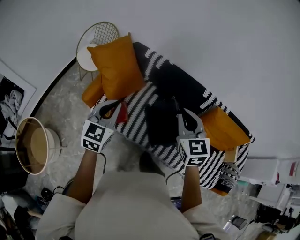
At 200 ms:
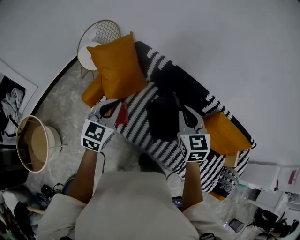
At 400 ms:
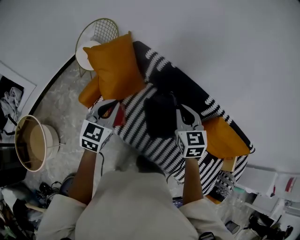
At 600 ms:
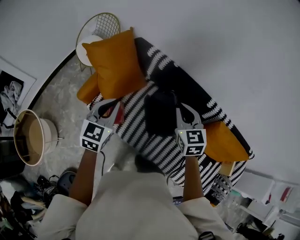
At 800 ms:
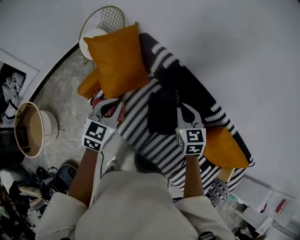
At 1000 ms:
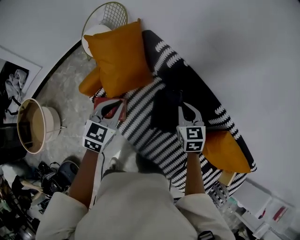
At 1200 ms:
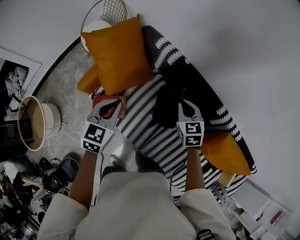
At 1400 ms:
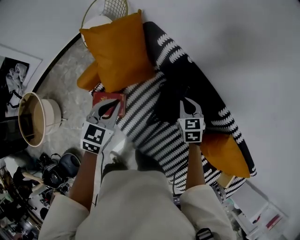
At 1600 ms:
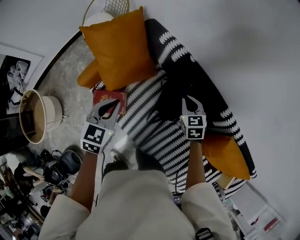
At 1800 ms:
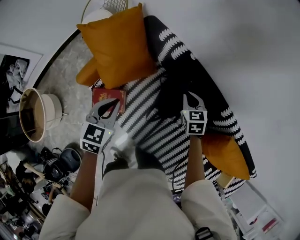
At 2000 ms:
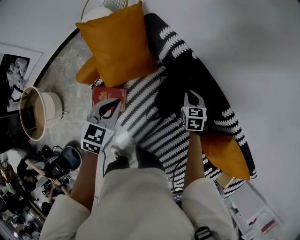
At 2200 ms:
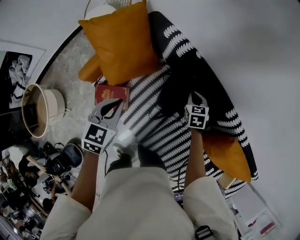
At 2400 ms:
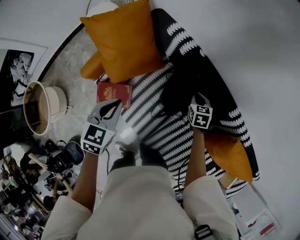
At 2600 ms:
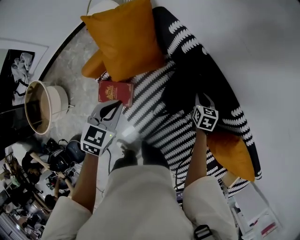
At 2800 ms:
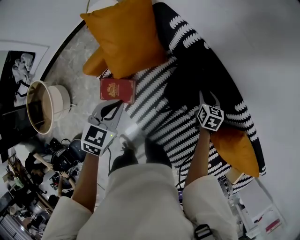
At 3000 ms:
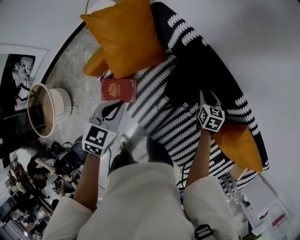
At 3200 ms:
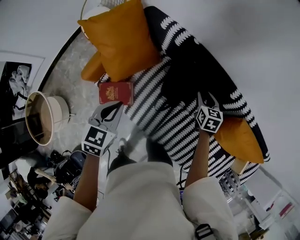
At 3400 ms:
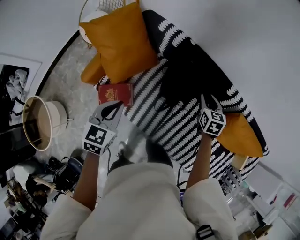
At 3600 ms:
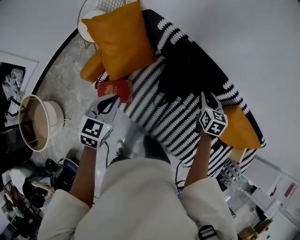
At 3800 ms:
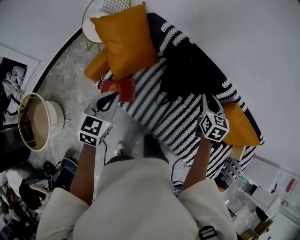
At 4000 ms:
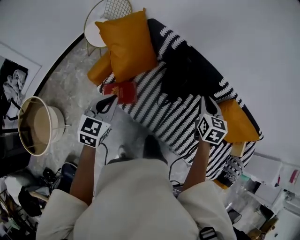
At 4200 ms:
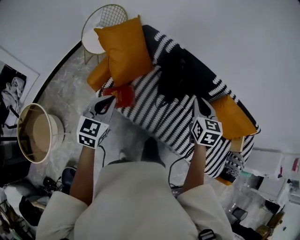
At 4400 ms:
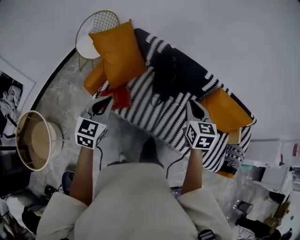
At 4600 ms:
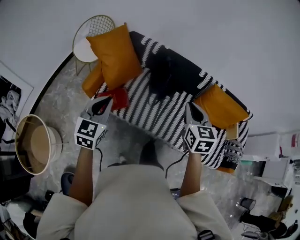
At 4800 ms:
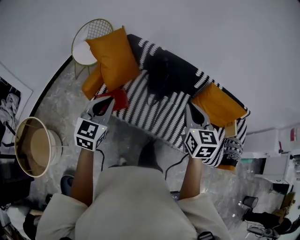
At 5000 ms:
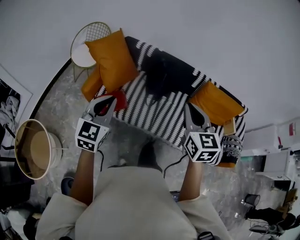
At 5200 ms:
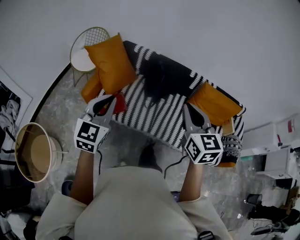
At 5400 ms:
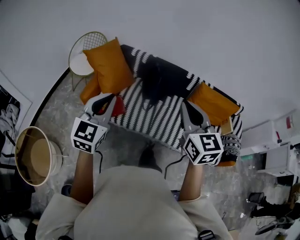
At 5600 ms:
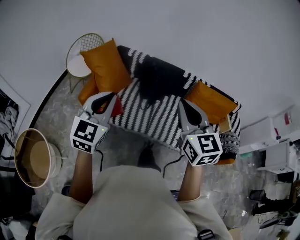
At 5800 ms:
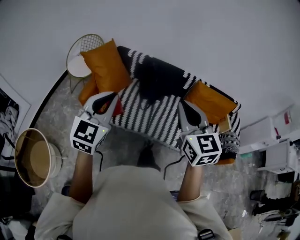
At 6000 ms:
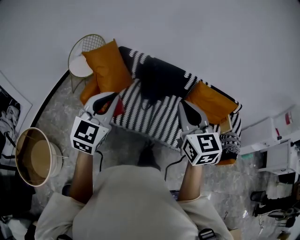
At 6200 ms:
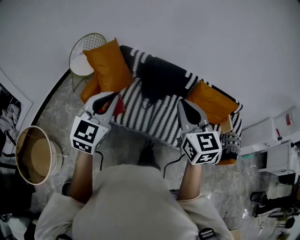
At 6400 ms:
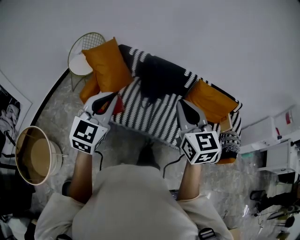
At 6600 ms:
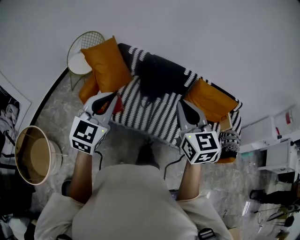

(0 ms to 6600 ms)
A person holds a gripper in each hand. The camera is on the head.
0 ms - 1600 ms: The right gripper is displaced forward and downward by approximately 40 cm, and rotates some 30 degrees, while the left gripper goes some 25 cm forward and downward, and swivels roughly 20 degrees.
1600 ms - 3200 ms: The left gripper moves backward, approximately 5 cm; the right gripper shifts about 10 cm to the right and backward, swivels approximately 20 degrees, and opens.
3200 ms - 5000 ms: The left gripper heads backward and upward, covering approximately 40 cm, and swivels roughly 30 degrees; the right gripper is displaced backward and upward by approximately 60 cm, rotates about 30 degrees, and closes.
5000 ms - 6600 ms: The right gripper goes some 10 cm backward and upward; the left gripper heads upward and backward, covering approximately 10 cm.

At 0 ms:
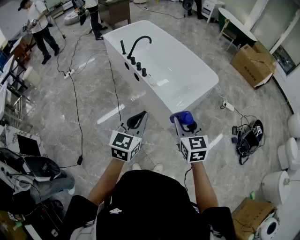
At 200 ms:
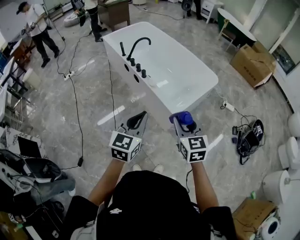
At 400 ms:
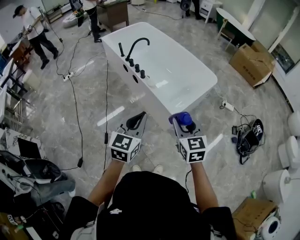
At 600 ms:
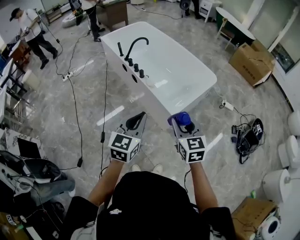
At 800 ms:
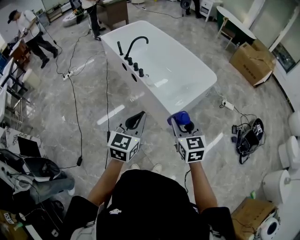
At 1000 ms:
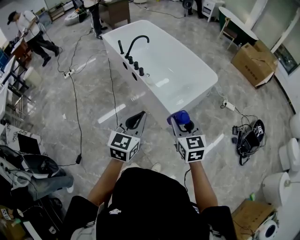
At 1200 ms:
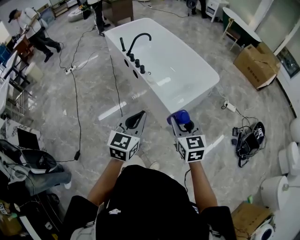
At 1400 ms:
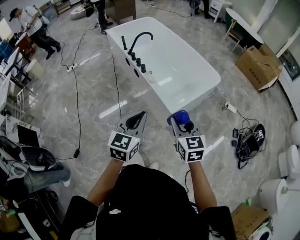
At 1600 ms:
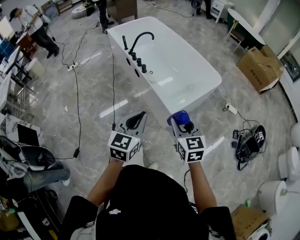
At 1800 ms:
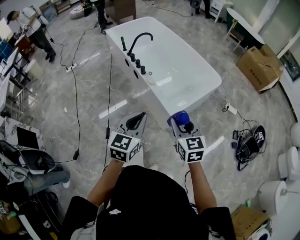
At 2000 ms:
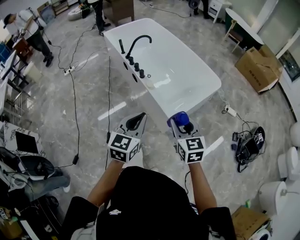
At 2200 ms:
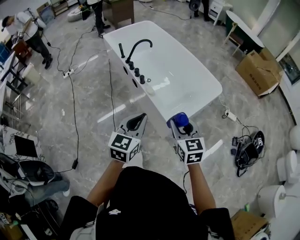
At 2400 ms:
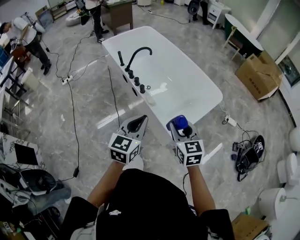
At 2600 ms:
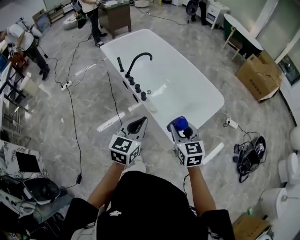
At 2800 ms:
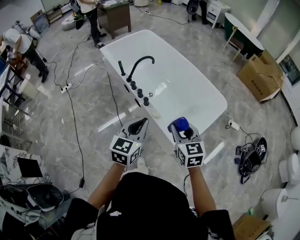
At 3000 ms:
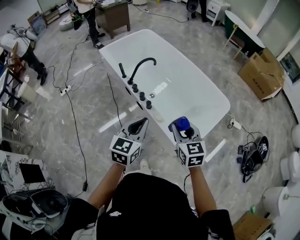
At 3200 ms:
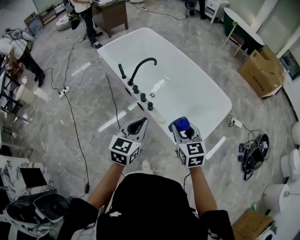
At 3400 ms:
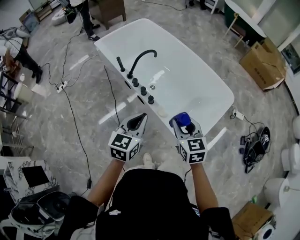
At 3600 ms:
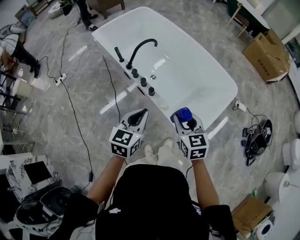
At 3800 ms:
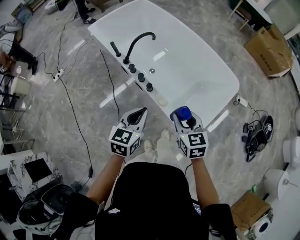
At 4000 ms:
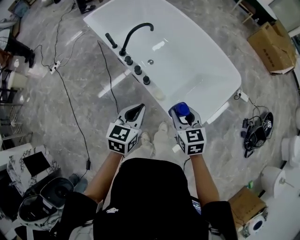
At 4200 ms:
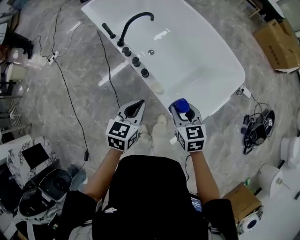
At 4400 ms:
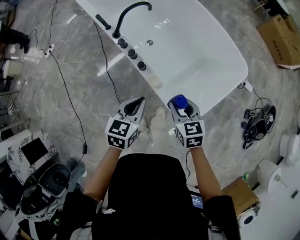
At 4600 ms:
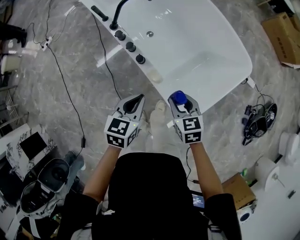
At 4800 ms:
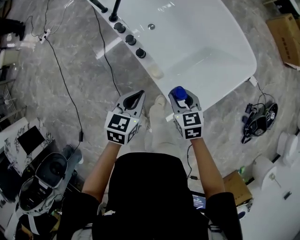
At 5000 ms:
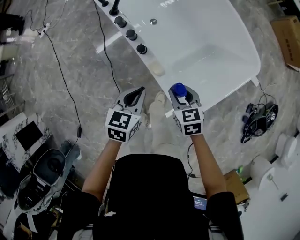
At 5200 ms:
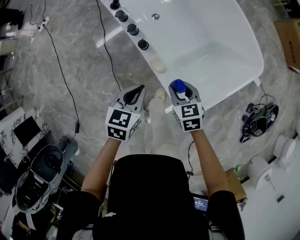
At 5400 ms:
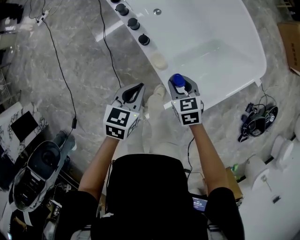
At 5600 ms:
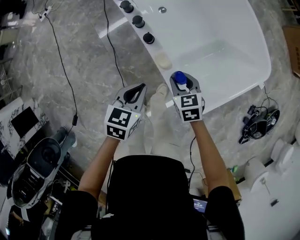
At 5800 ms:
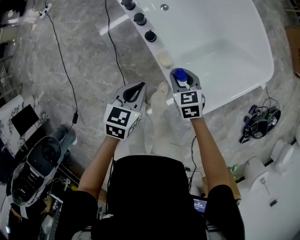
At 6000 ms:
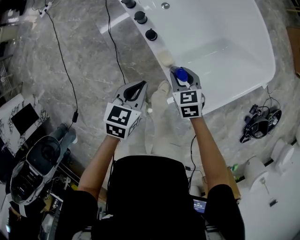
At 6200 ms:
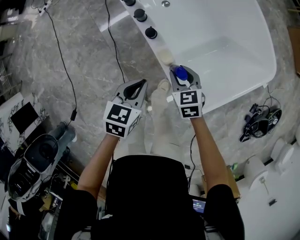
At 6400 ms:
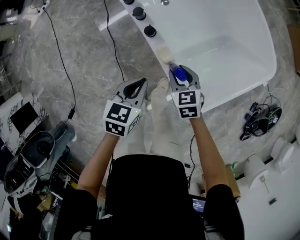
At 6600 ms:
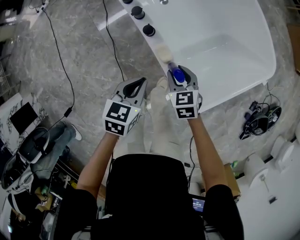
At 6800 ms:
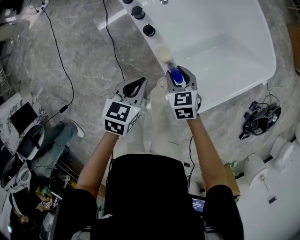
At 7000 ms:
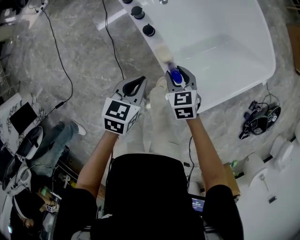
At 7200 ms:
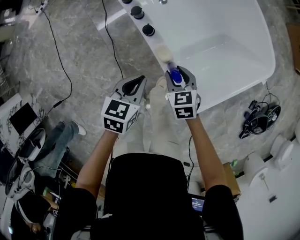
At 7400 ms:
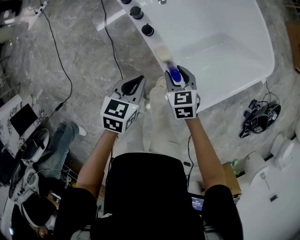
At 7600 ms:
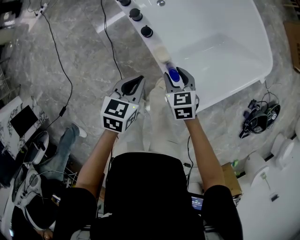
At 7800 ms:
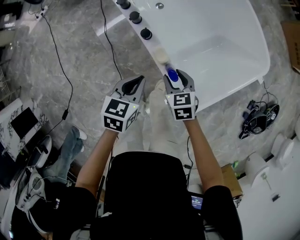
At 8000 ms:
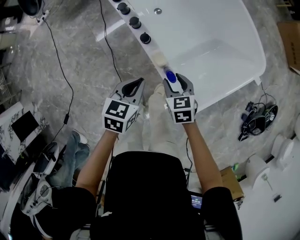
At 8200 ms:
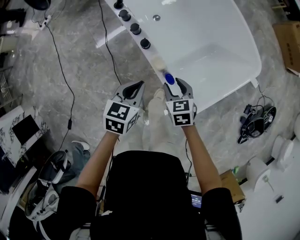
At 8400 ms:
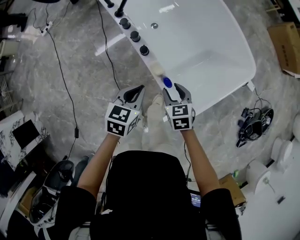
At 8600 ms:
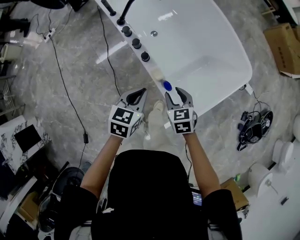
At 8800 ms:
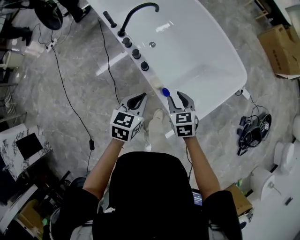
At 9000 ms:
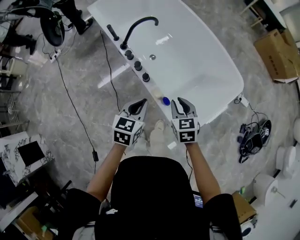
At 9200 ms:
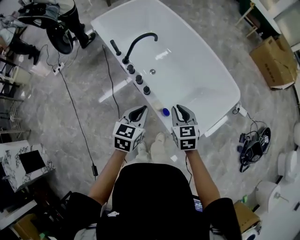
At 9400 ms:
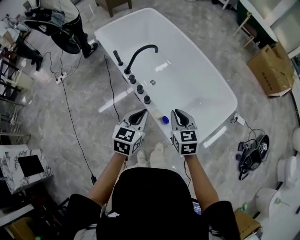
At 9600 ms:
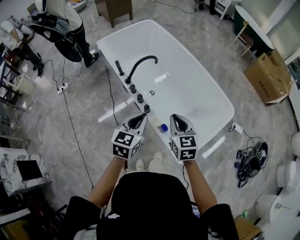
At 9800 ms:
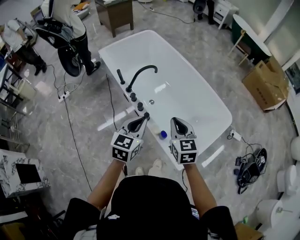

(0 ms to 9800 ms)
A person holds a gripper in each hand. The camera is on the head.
0 ms - 1400 ms: The left gripper goes roughly 5 cm to the right. The right gripper shifts by some 5 cm.
1400 ms - 2800 ms: The grippers both shift forward by roughly 30 cm.
2800 ms - 4200 ms: Both grippers travel together downward and forward, roughly 25 cm.
4200 ms - 5600 ms: The two grippers go approximately 20 cm downward. The right gripper changes its angle by roughly 20 degrees.
5600 ms - 7000 ms: The grippers stay close to where they were, moving slightly.
7000 ms - 8400 ms: Both grippers travel together upward, roughly 10 cm.
8400 ms - 9800 ms: The grippers both shift upward by some 30 cm. The right gripper rotates about 30 degrees, and closes, while the left gripper changes its angle by roughly 20 degrees.

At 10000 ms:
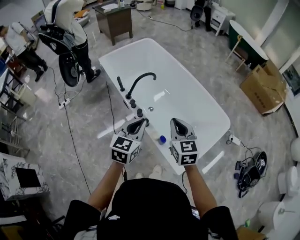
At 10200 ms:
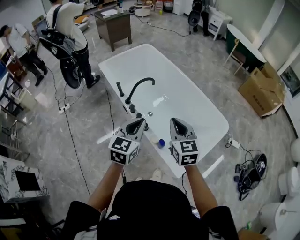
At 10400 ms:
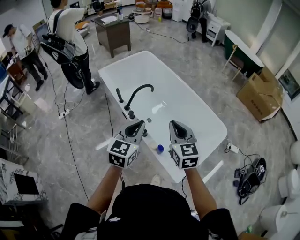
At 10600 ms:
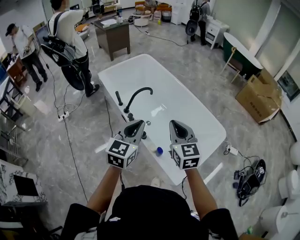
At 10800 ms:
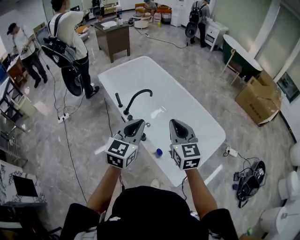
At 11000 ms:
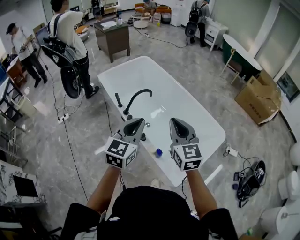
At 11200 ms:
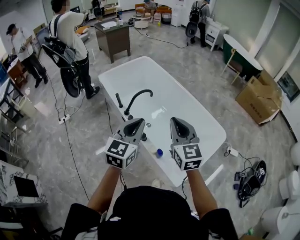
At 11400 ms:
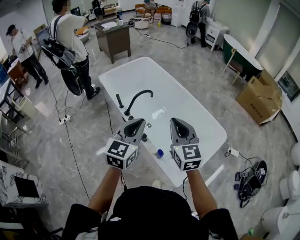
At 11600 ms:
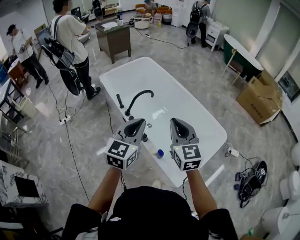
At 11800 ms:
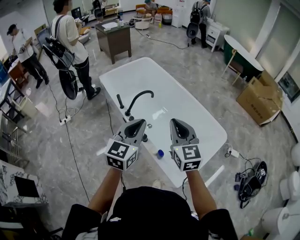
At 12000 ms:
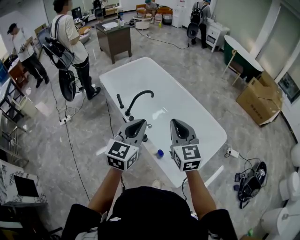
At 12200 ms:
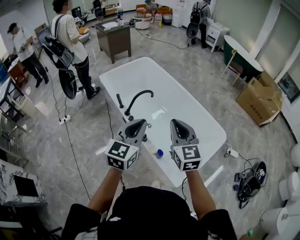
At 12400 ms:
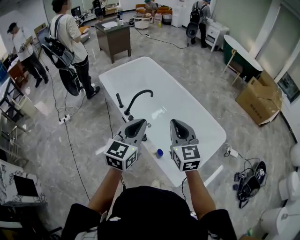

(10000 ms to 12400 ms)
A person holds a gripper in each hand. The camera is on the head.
10000 ms - 11200 ms: The grippers both shift upward by roughly 10 cm.
11200 ms - 12400 ms: Both grippers stay put.

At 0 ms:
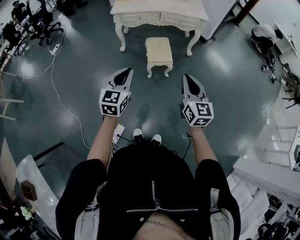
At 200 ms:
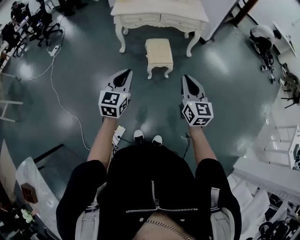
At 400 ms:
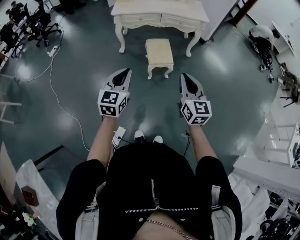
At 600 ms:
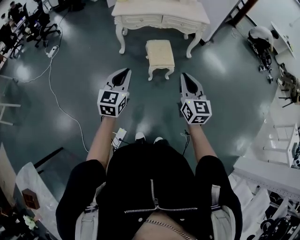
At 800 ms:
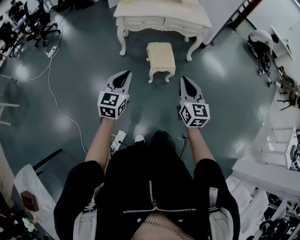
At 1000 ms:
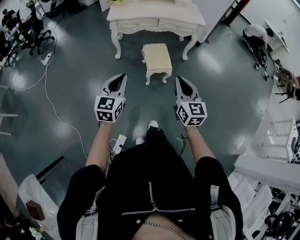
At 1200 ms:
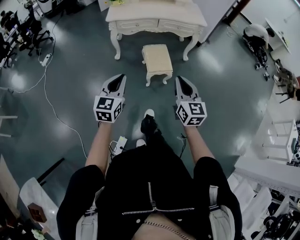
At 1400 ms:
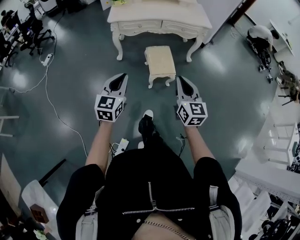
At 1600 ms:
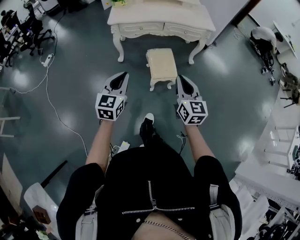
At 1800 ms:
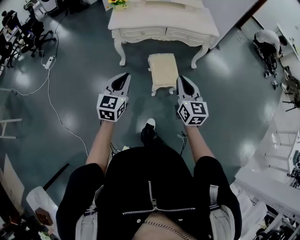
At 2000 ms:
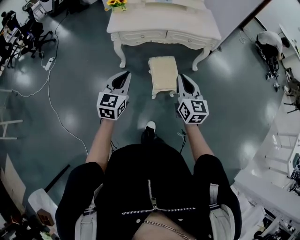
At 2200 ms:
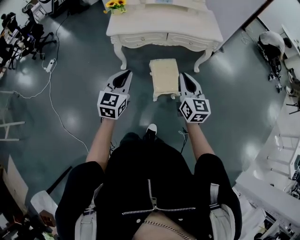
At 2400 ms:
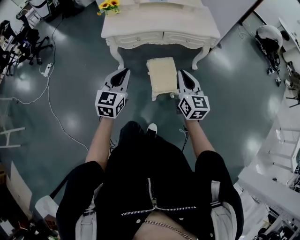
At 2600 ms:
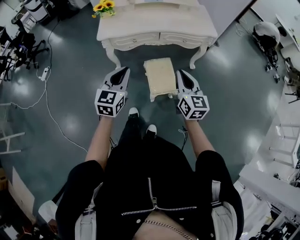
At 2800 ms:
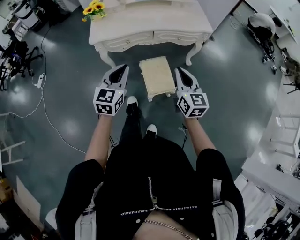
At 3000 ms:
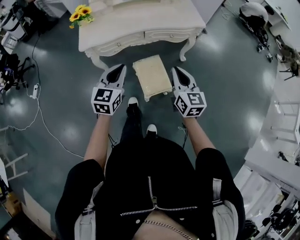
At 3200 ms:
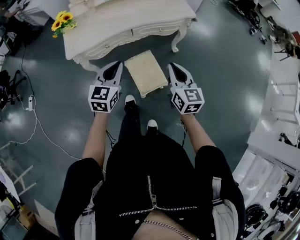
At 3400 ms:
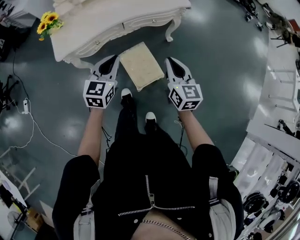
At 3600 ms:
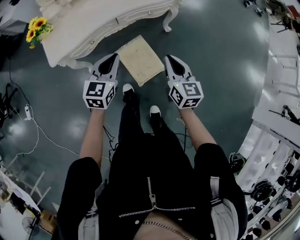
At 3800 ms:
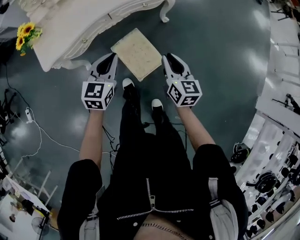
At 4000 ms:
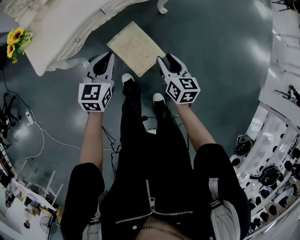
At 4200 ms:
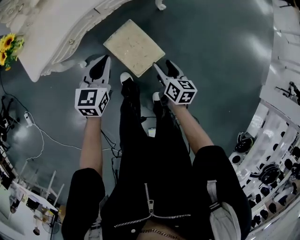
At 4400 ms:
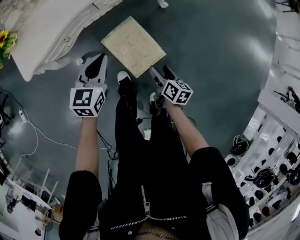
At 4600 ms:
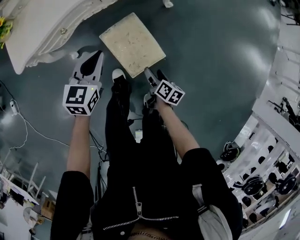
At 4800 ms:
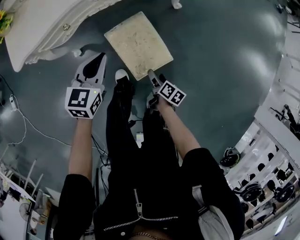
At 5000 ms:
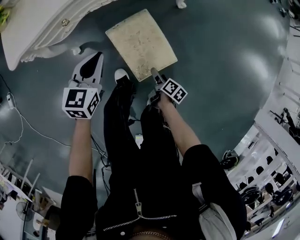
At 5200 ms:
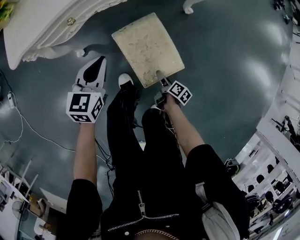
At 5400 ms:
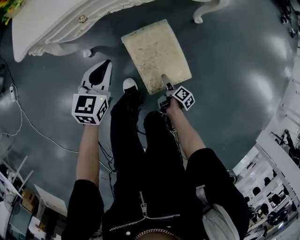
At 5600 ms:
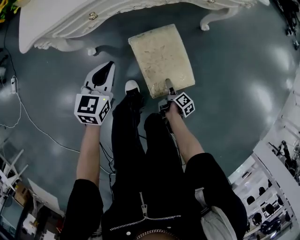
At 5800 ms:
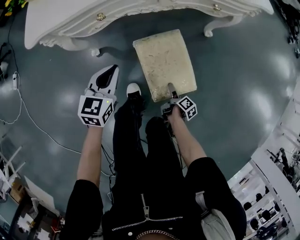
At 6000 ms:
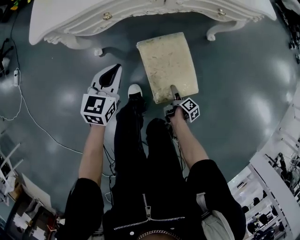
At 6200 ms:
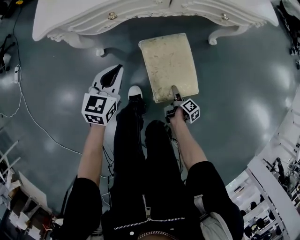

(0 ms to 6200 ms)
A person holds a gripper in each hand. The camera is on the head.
0 ms - 1600 ms: The grippers both shift forward and to the left by roughly 25 cm.
1600 ms - 3200 ms: The two grippers go roughly 30 cm forward.
3200 ms - 4600 ms: The right gripper heads downward, covering roughly 40 cm, rotates around the line of its fingers by approximately 50 degrees, clockwise from behind, and opens its fingers. The left gripper is displaced downward and forward by some 25 cm.
4600 ms - 6200 ms: The right gripper moves downward, about 20 cm, and changes its angle by some 20 degrees. Meanwhile the left gripper moves downward and to the left, roughly 20 cm.
